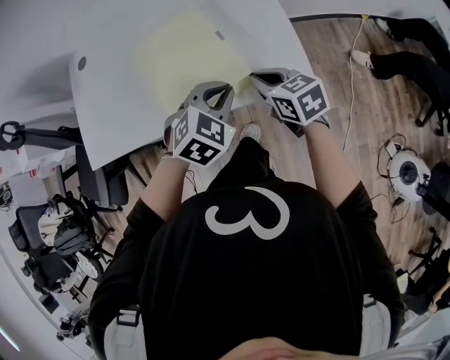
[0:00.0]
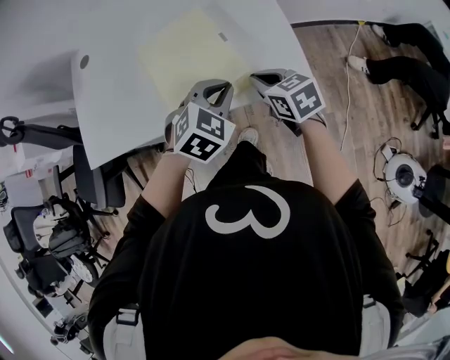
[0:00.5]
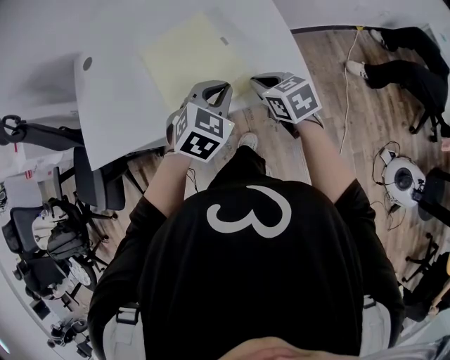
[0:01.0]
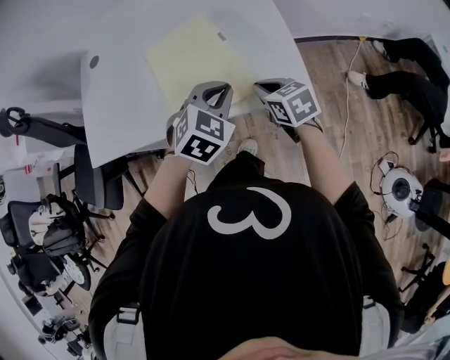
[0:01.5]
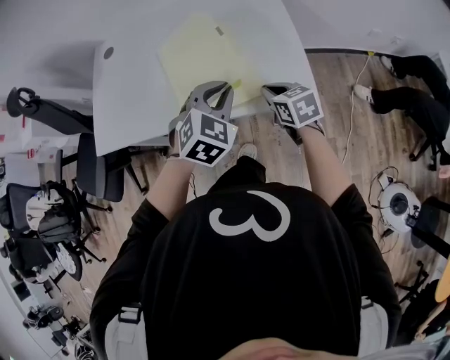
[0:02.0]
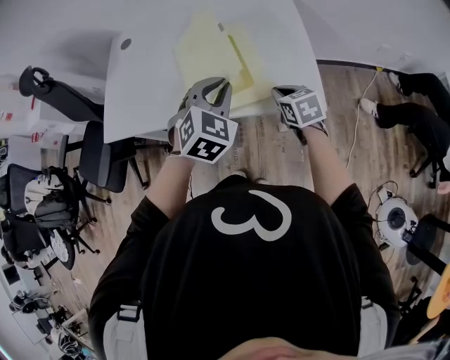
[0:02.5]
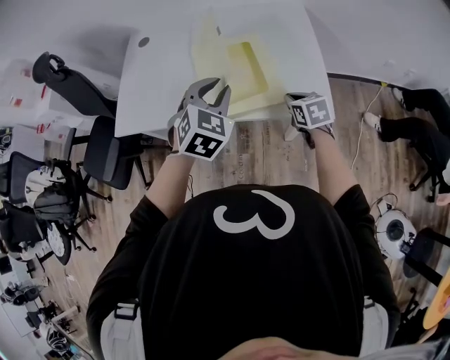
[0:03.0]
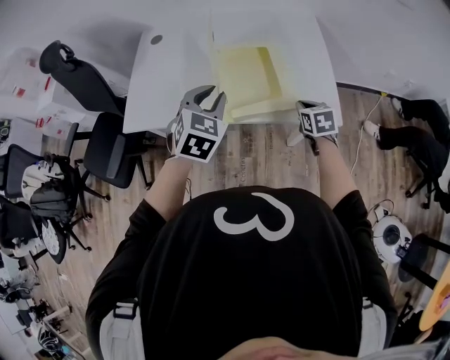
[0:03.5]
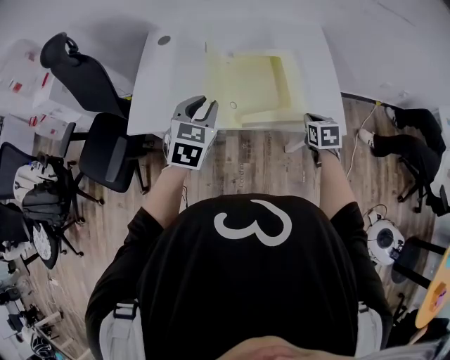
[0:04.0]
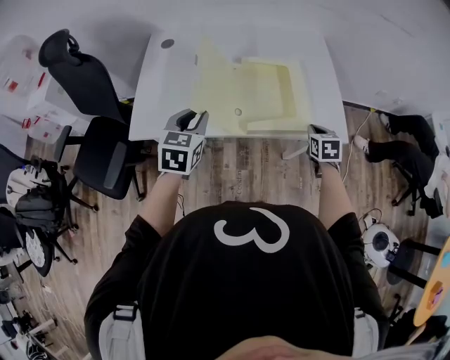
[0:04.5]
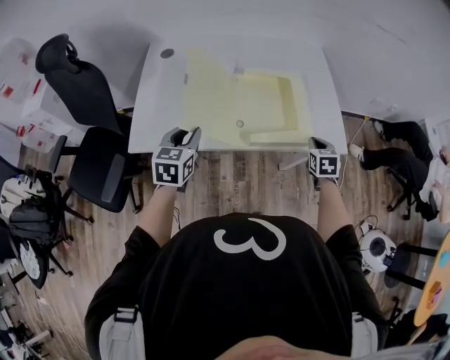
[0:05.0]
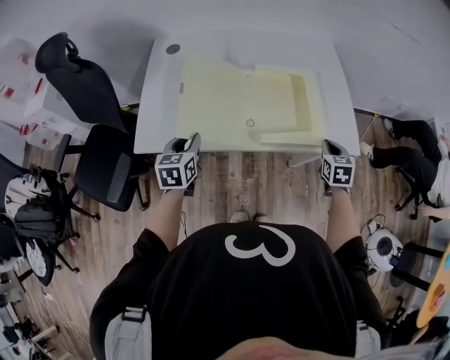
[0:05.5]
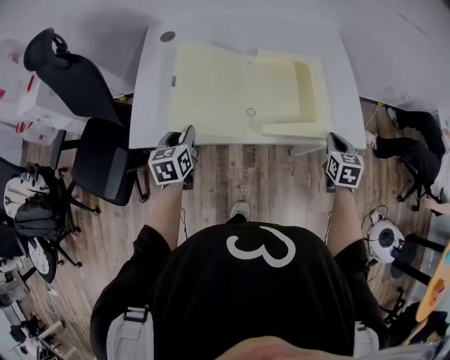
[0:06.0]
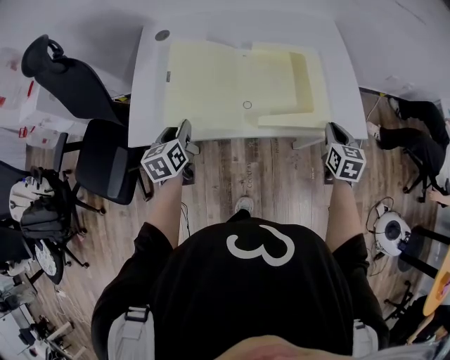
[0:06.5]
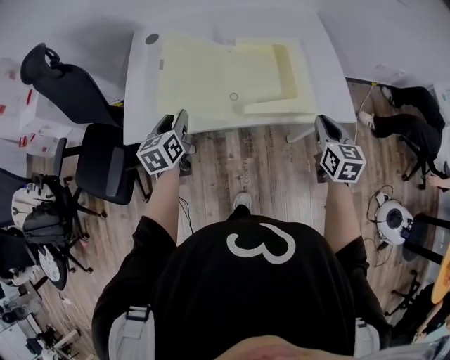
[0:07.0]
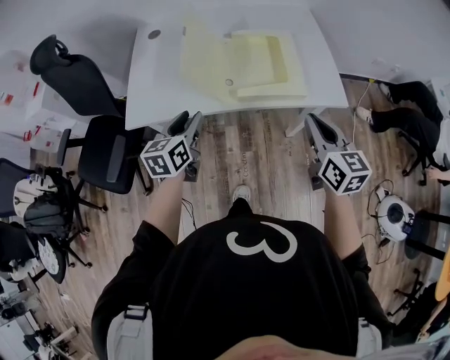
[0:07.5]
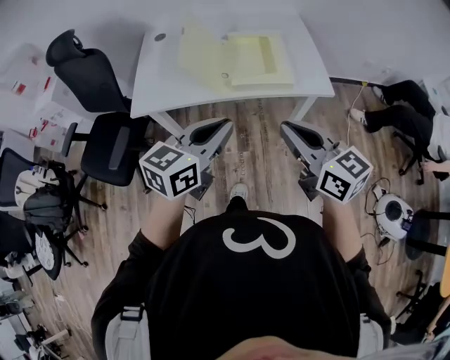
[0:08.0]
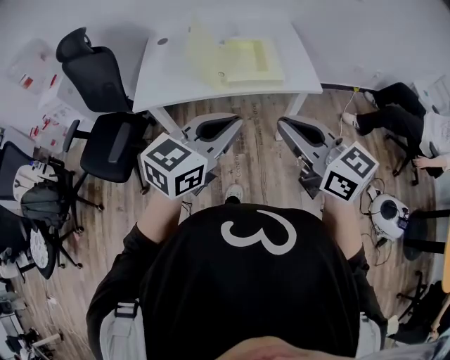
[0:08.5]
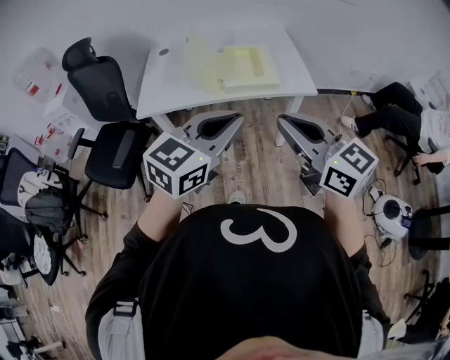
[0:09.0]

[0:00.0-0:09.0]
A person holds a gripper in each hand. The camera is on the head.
0:00.0 to 0:02.0: The left gripper travels upward by about 5 cm.
0:02.0 to 0:04.5: The left gripper is displaced to the left by some 30 cm, and rotates about 30 degrees; the right gripper rotates some 20 degrees.
0:04.5 to 0:07.0: The left gripper is displaced downward and to the left by some 10 cm, and rotates some 30 degrees. The right gripper is displaced upward and backward by about 10 cm, and changes its angle by about 20 degrees.
0:07.0 to 0:09.0: The left gripper travels backward, upward and to the right by roughly 50 cm, swivels roughly 50 degrees, and closes; the right gripper is displaced backward and upward by approximately 40 cm, and rotates roughly 40 degrees.

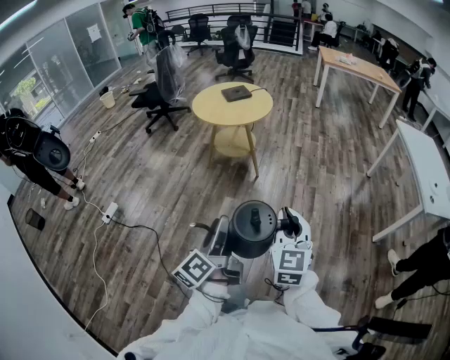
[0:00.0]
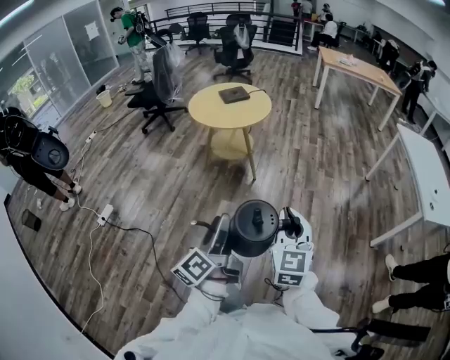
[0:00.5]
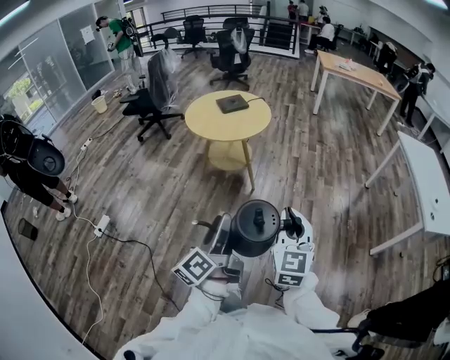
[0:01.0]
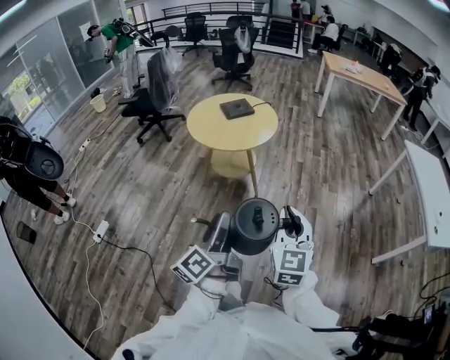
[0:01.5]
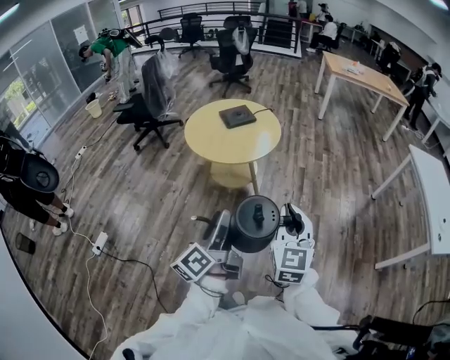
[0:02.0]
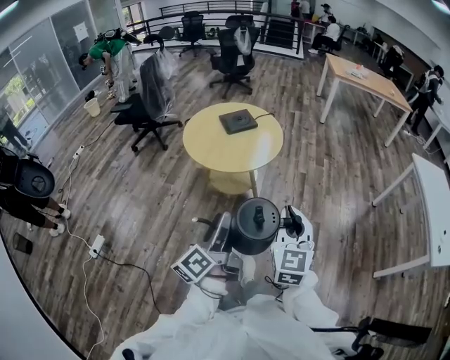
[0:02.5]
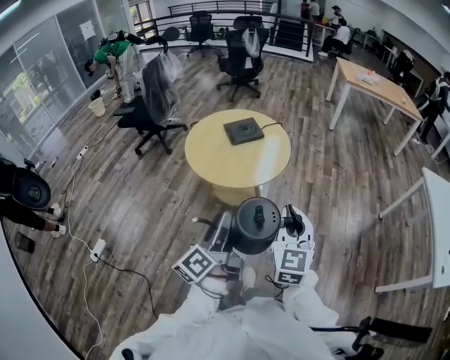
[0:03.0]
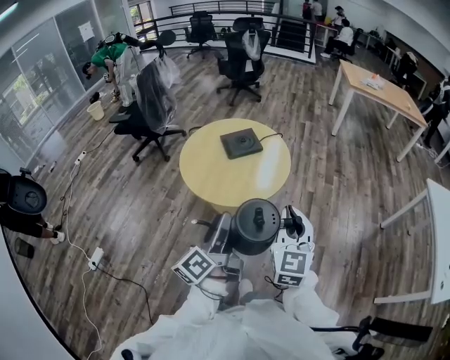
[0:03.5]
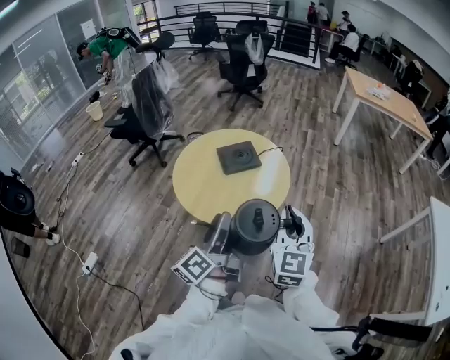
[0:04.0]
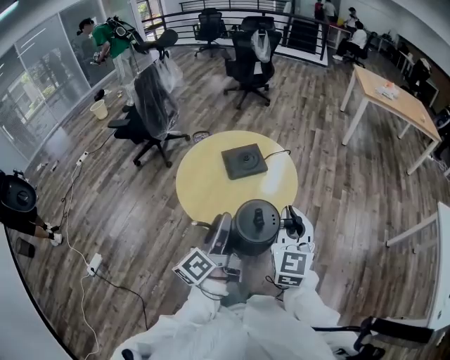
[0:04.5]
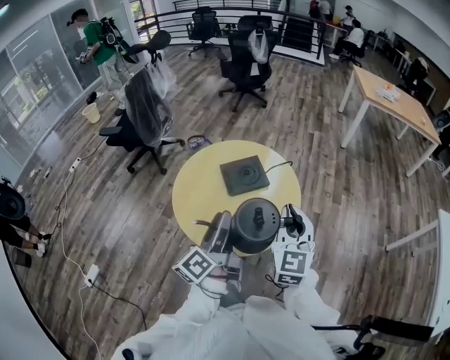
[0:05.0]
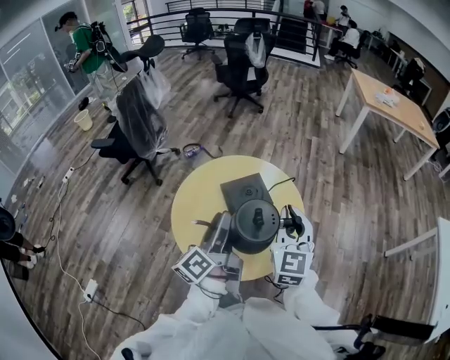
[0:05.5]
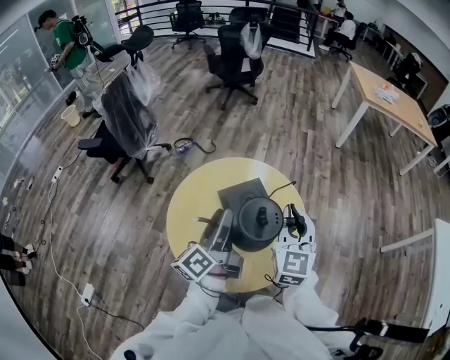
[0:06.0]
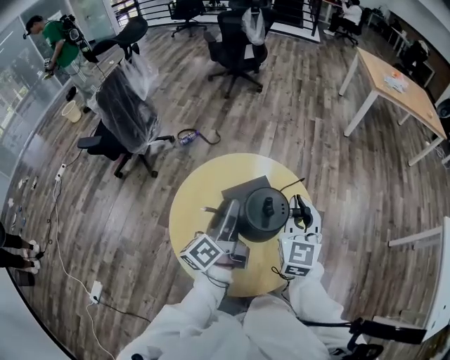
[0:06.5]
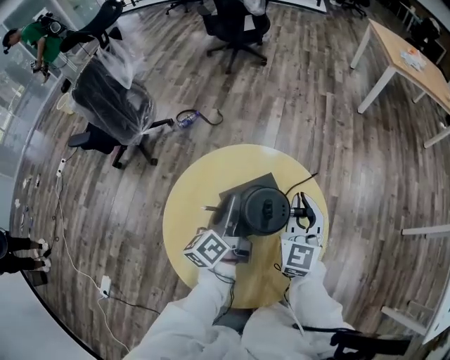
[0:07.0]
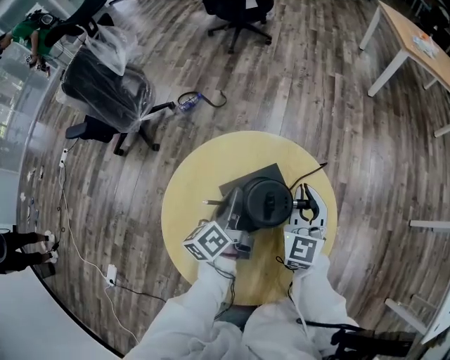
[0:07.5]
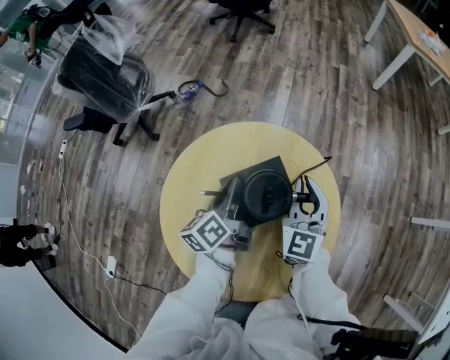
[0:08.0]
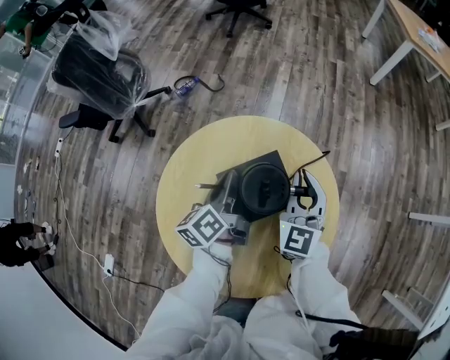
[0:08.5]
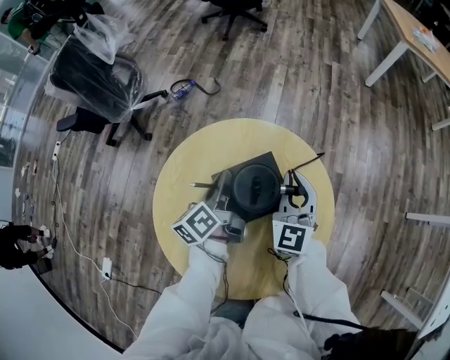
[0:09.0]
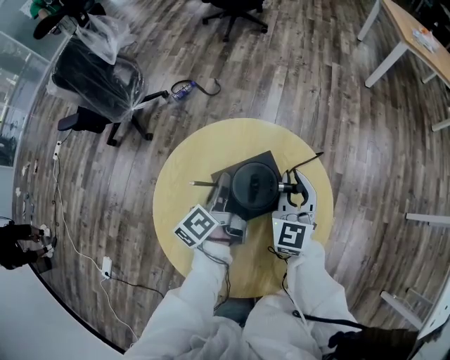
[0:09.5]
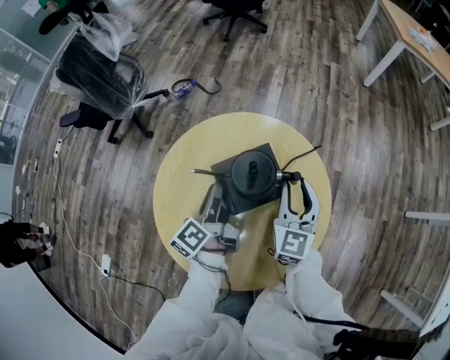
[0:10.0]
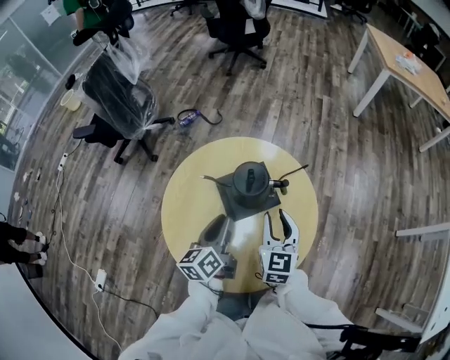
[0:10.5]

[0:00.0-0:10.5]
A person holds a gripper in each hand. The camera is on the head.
0:00.0 to 0:02.0: Both grippers travel together forward, about 35 cm.
0:02.0 to 0:04.0: Both grippers move forward, approximately 35 cm.
0:04.0 to 0:06.5: Both grippers travel together forward, approximately 40 cm.
0:06.5 to 0:08.5: The grippers both shift downward and forward by approximately 20 cm. The left gripper changes its angle by about 20 degrees, and closes its fingers.
0:08.5 to 0:10.5: The two grippers go about 15 cm backward. The right gripper opens up.

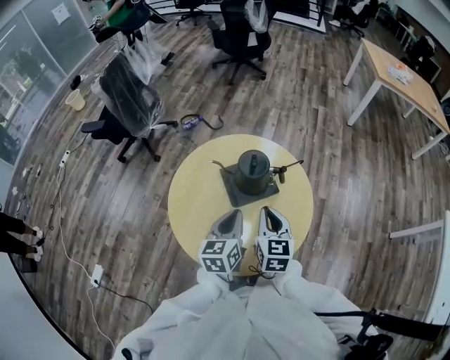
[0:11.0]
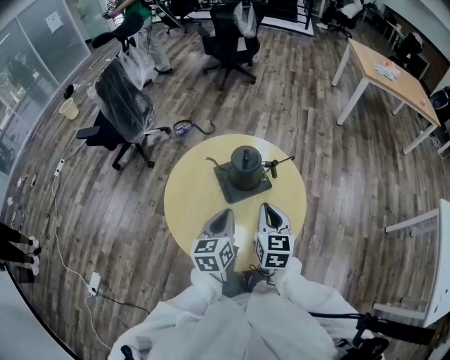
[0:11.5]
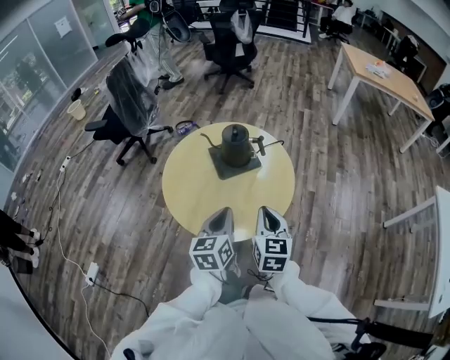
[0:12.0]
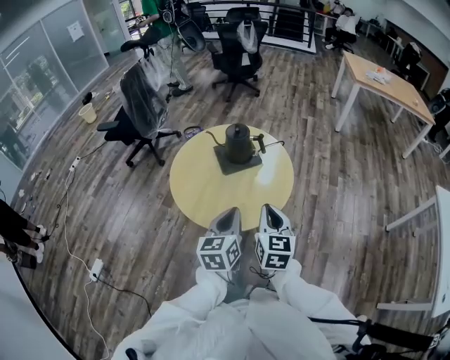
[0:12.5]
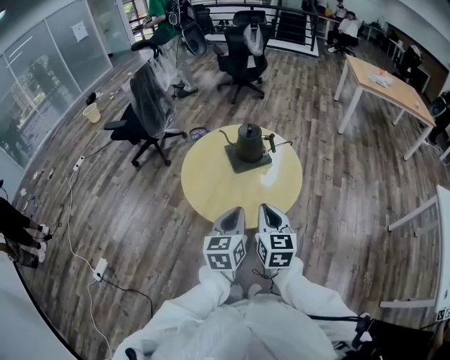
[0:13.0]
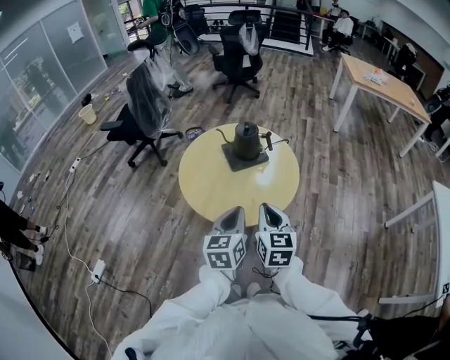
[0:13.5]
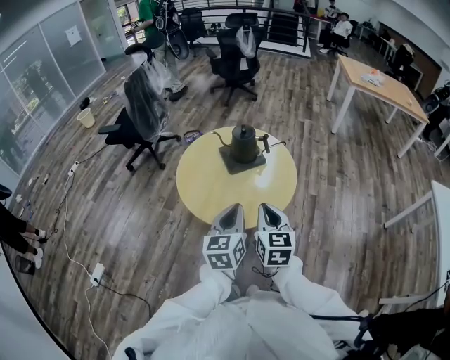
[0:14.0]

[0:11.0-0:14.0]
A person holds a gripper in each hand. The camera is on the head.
0:11.0 to 0:12.5: Both grippers travel together backward, roughly 20 cm.
0:12.5 to 0:14.0: The left gripper shifts by approximately 5 cm. Meanwhile the right gripper changes place by roughly 5 cm.

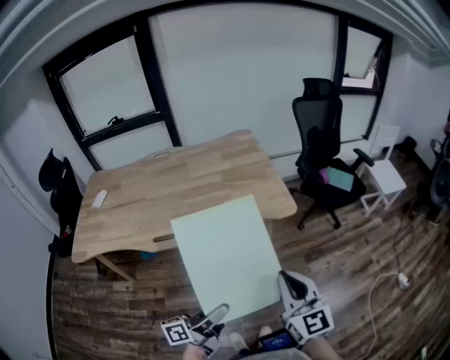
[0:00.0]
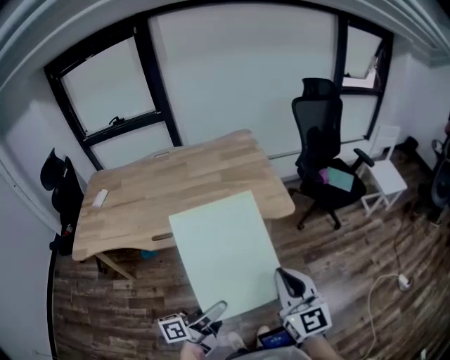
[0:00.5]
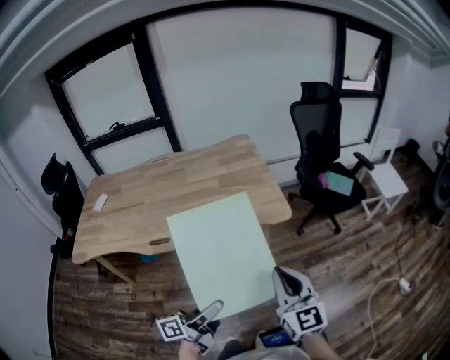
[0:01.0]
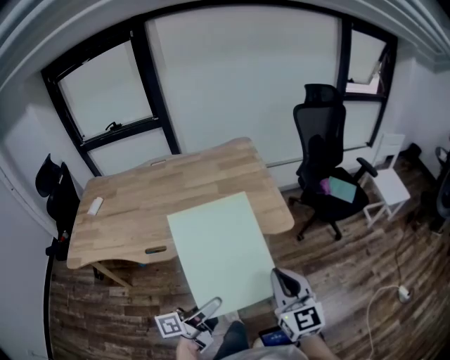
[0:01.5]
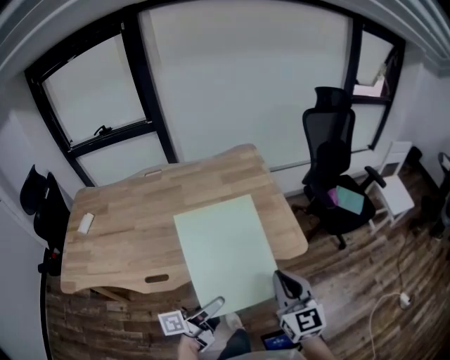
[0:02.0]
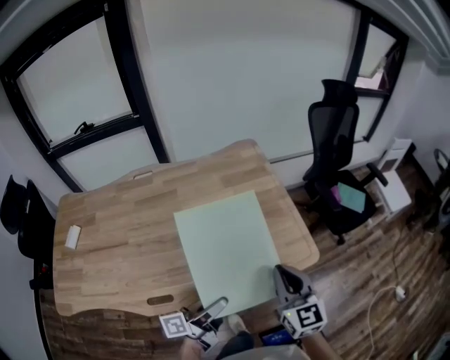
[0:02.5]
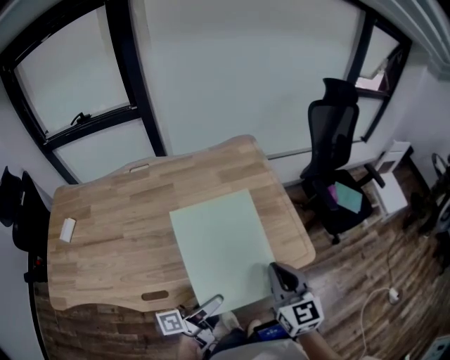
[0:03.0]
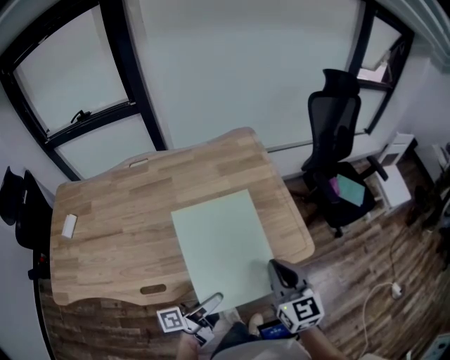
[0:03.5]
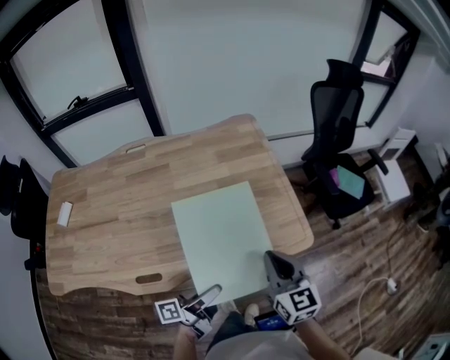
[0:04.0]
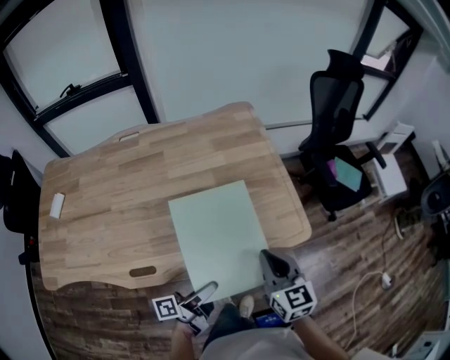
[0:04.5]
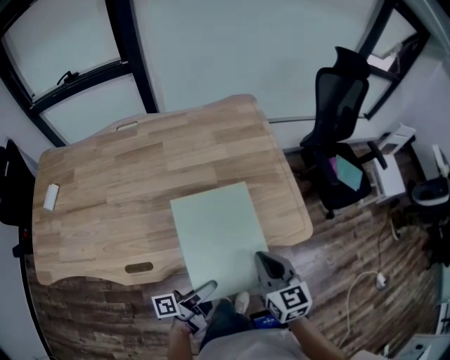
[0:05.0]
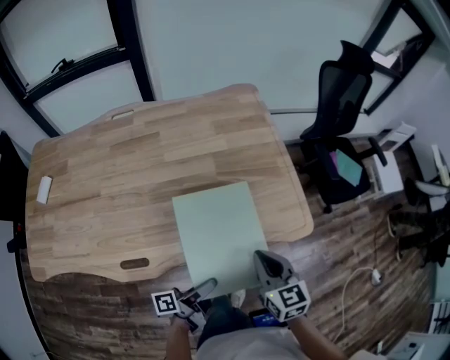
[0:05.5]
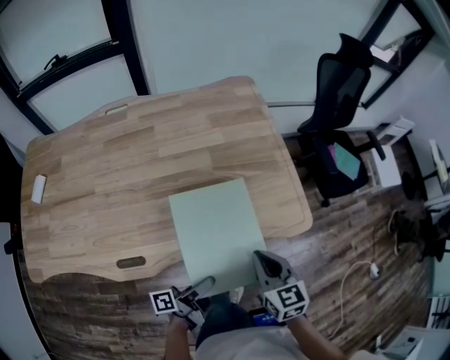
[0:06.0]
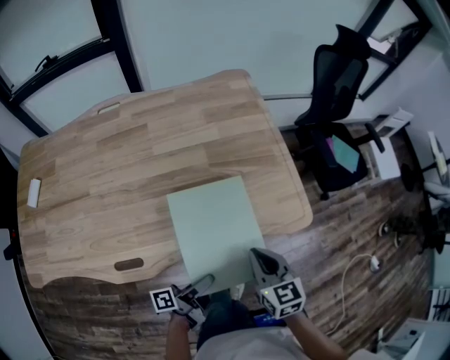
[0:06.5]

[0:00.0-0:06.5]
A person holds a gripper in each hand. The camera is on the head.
0:00.0 to 0:02.0: The right gripper shifts by about 20 cm.
0:02.0 to 0:04.5: The right gripper moves approximately 15 cm.
0:04.5 to 0:06.5: The right gripper shifts roughly 10 cm downward.
